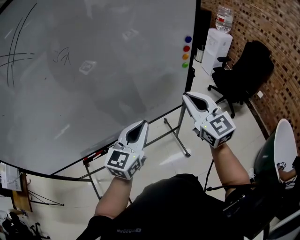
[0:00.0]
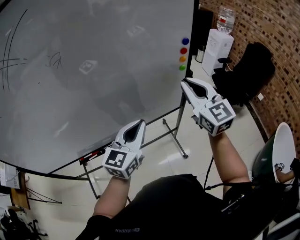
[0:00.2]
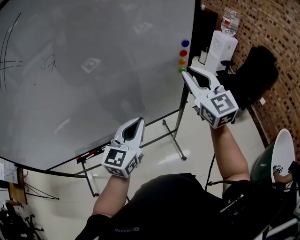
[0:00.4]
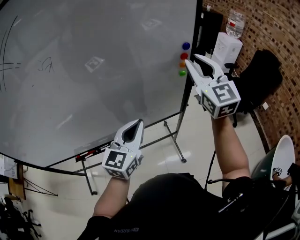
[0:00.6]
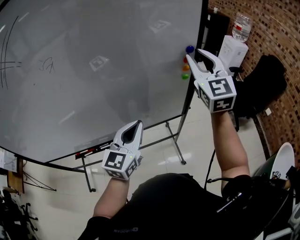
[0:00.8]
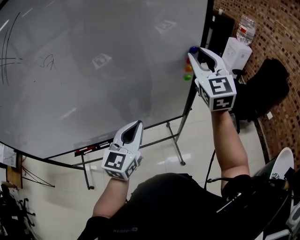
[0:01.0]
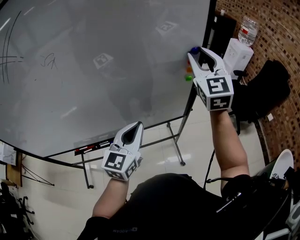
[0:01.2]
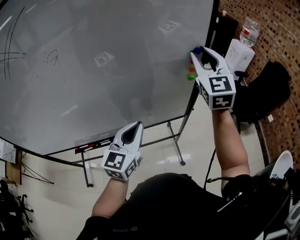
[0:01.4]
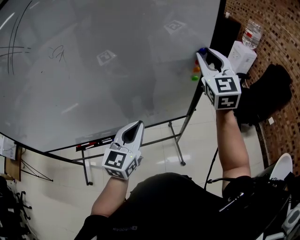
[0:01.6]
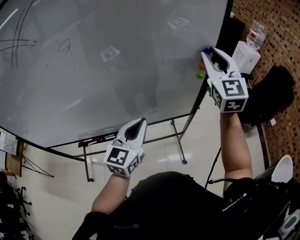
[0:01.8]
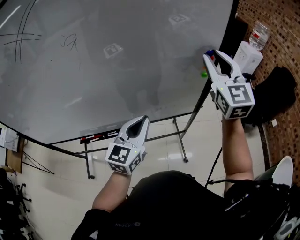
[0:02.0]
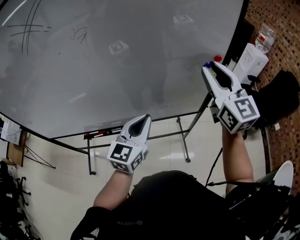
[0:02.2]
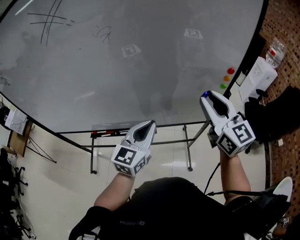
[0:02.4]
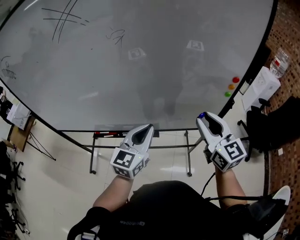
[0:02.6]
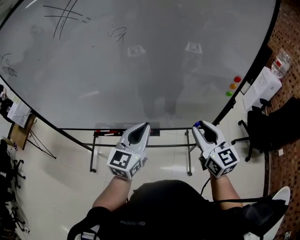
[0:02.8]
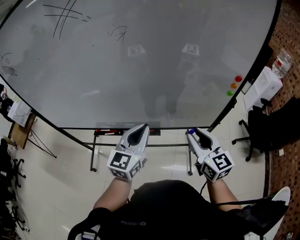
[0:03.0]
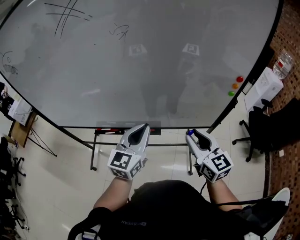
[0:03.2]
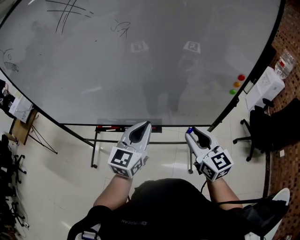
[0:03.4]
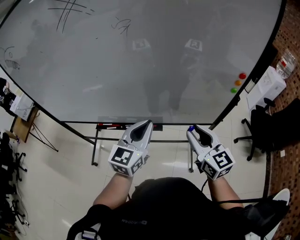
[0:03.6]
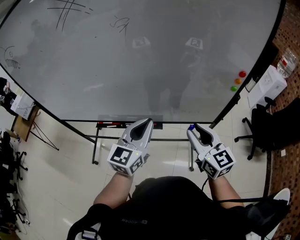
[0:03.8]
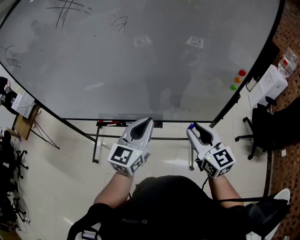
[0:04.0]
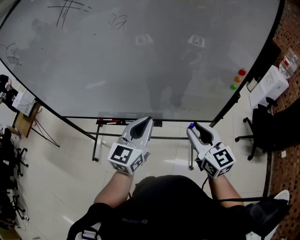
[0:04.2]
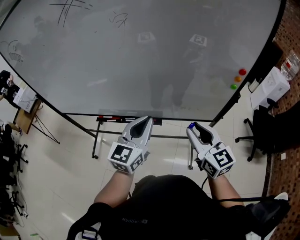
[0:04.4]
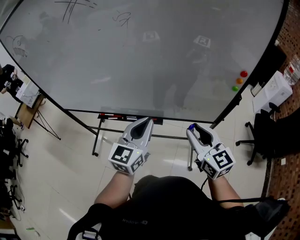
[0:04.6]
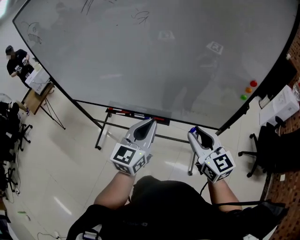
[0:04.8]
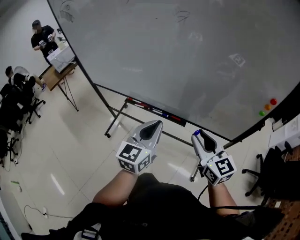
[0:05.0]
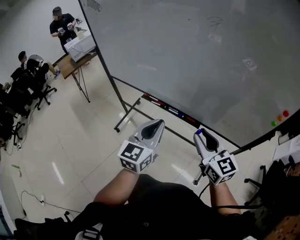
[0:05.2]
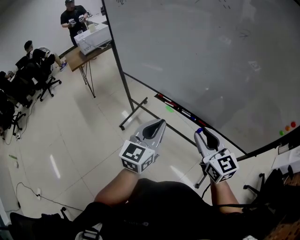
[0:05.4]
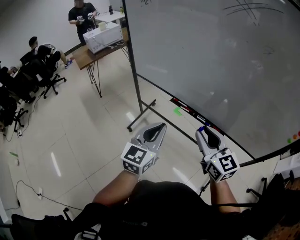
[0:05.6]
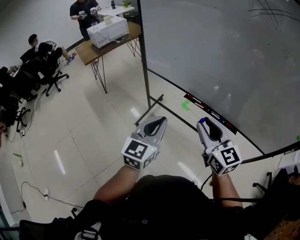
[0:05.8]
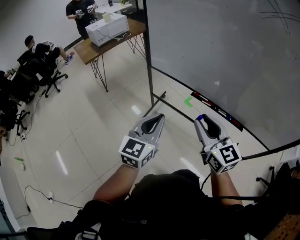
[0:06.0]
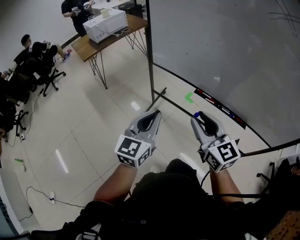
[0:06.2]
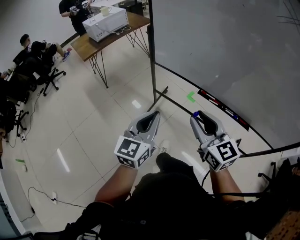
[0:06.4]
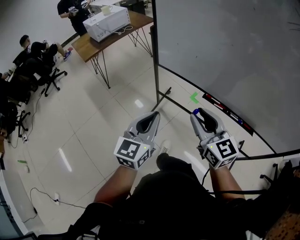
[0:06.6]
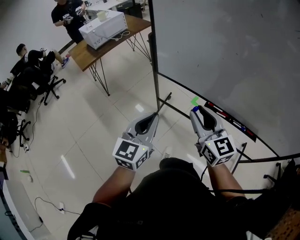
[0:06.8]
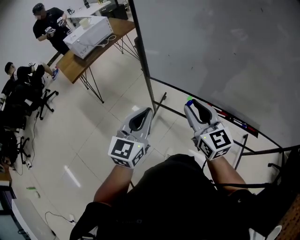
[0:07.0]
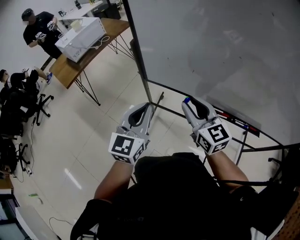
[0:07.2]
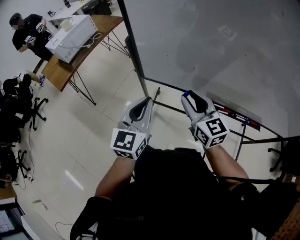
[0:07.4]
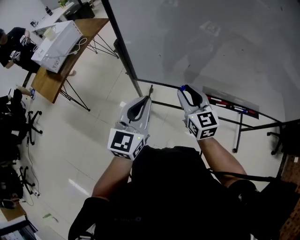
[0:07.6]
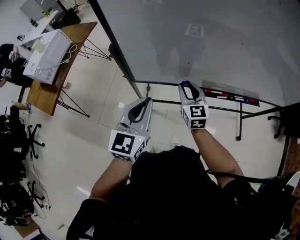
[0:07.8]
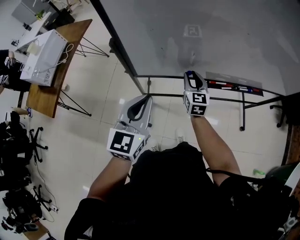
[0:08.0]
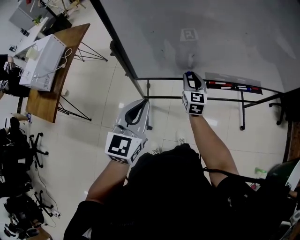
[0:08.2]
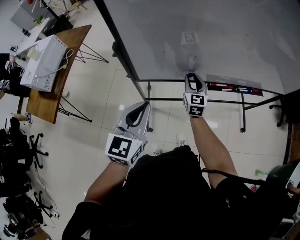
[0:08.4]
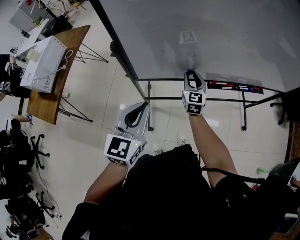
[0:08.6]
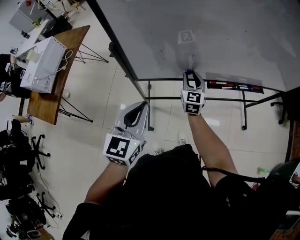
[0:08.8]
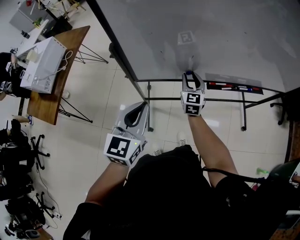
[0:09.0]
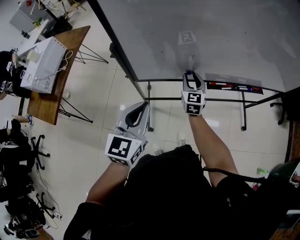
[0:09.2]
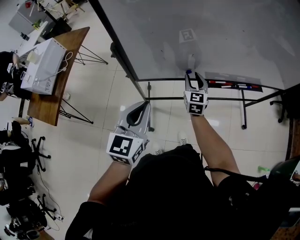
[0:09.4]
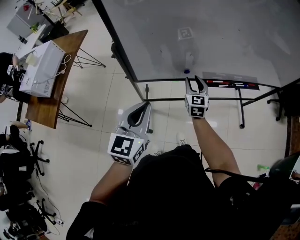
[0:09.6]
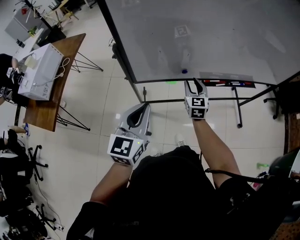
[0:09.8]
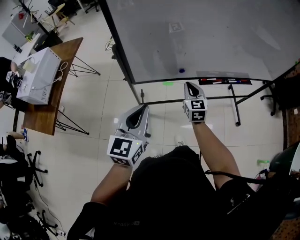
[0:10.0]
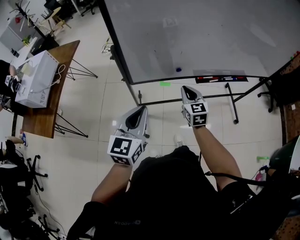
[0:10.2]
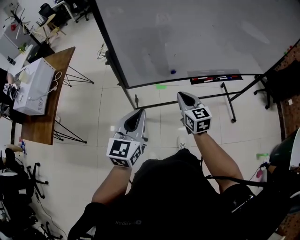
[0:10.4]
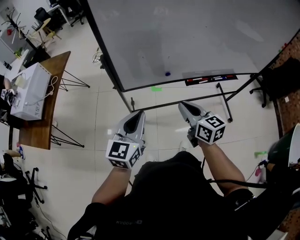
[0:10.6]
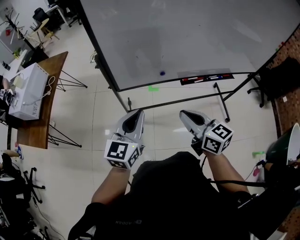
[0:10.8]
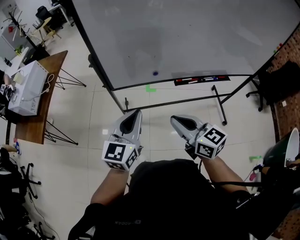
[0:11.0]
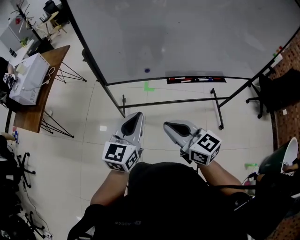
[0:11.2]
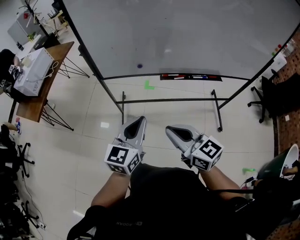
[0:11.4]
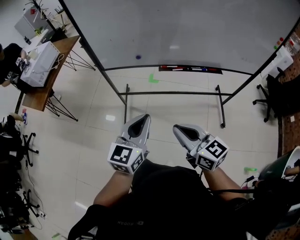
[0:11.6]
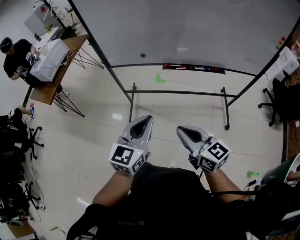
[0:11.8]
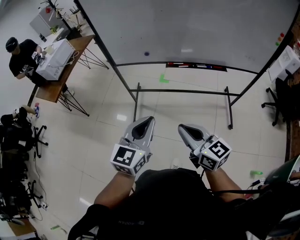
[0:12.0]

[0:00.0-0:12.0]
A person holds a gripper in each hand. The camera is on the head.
0:00.0 to 0:01.6: The right gripper heads forward and upward, covering approximately 20 cm, and opens its fingers.
0:01.6 to 0:03.0: The right gripper is displaced downward, backward and to the left by roughly 30 cm, and swivels about 40 degrees. The left gripper shifts some 10 cm to the left.
0:03.0 to 0:04.4: The grippers move only a little.
0:04.4 to 0:06.0: The pair of grippers is taken approximately 50 cm. The left gripper rotates about 30 degrees. The right gripper changes its angle by some 30 degrees.
0:06.0 to 0:07.6: The right gripper heads forward, covering about 35 cm, and turns by roughly 30 degrees. Meanwhile the left gripper shifts roughly 35 cm forward and to the left.
0:07.6 to 0:09.0: The right gripper moves downward and forward, some 15 cm, and rotates roughly 30 degrees; the left gripper shifts by roughly 5 cm.
0:09.0 to 0:10.4: The right gripper goes about 15 cm backward and upward, and closes its fingers; the left gripper goes approximately 5 cm backward.
0:10.4 to 0:12.0: Both grippers move backward and to the right, approximately 40 cm. The right gripper rotates some 40 degrees.

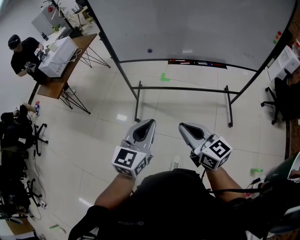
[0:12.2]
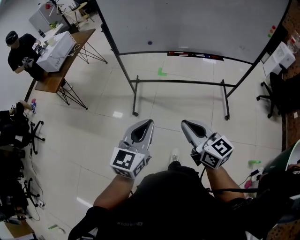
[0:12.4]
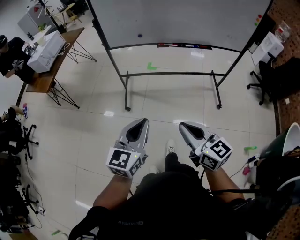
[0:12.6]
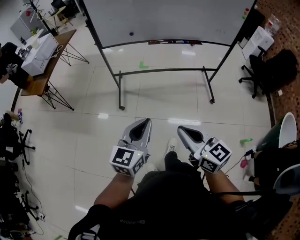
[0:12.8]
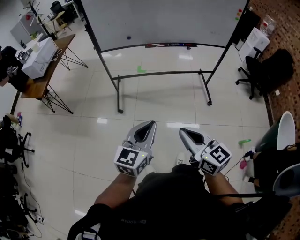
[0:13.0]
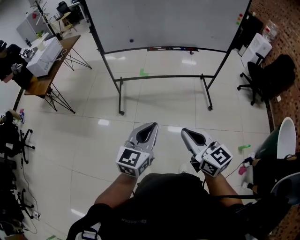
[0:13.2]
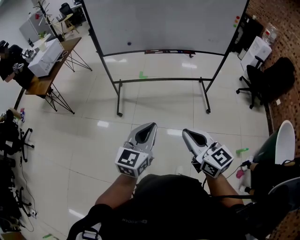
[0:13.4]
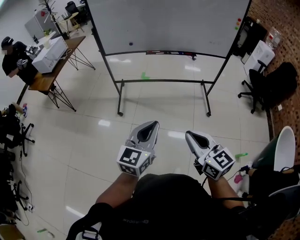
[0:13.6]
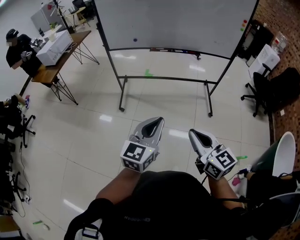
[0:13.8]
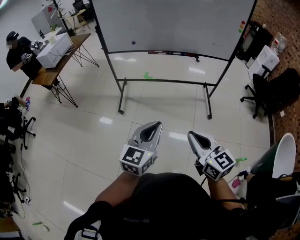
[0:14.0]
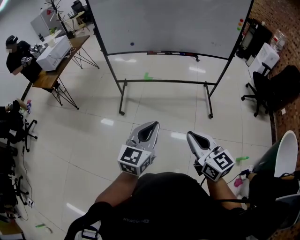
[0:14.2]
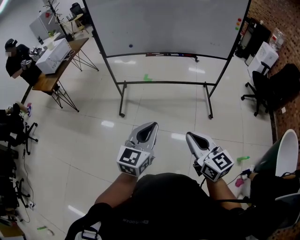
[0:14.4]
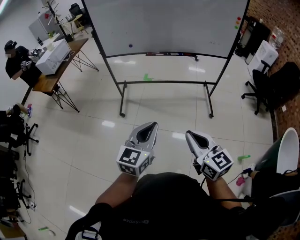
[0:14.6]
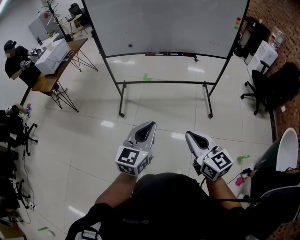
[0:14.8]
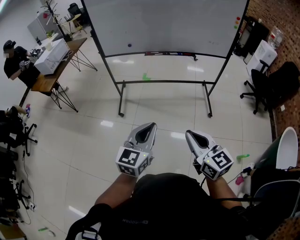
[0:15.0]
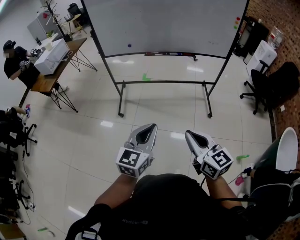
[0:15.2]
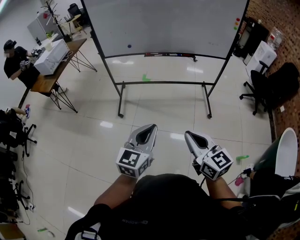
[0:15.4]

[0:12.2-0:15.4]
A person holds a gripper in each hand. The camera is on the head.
0:12.2 to 0:13.8: The two grippers go approximately 30 cm backward and to the right.
0:13.8 to 0:15.4: The grippers stay close to where they were, moving slightly.

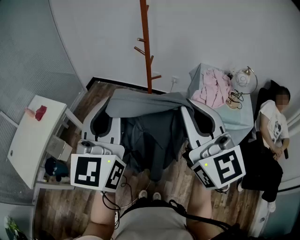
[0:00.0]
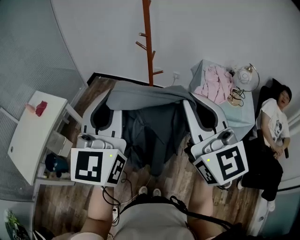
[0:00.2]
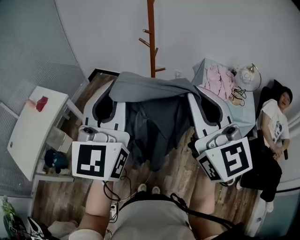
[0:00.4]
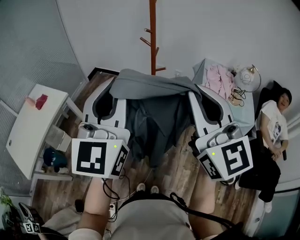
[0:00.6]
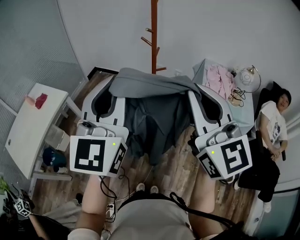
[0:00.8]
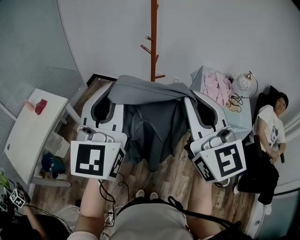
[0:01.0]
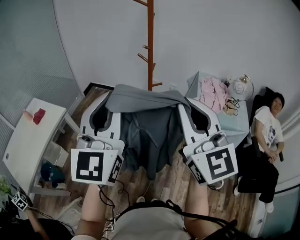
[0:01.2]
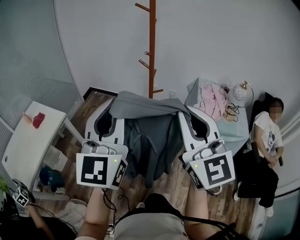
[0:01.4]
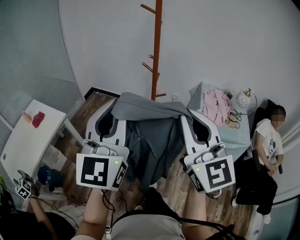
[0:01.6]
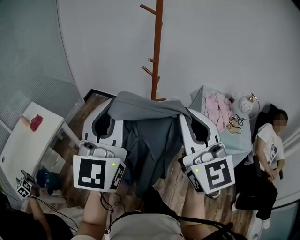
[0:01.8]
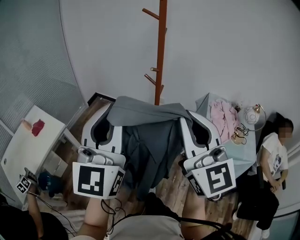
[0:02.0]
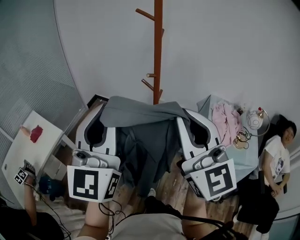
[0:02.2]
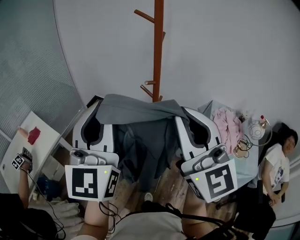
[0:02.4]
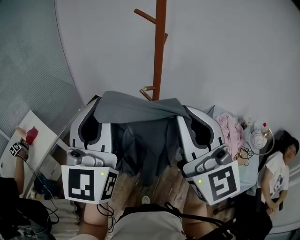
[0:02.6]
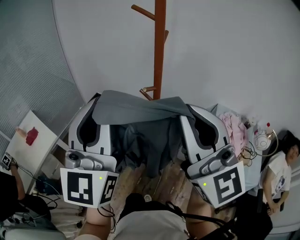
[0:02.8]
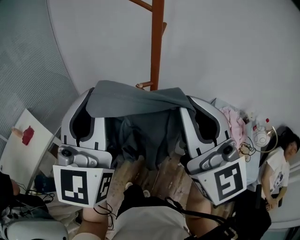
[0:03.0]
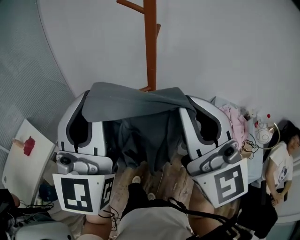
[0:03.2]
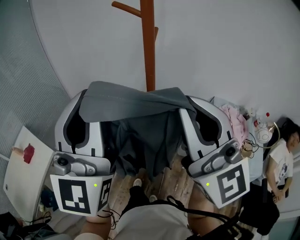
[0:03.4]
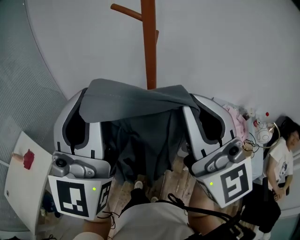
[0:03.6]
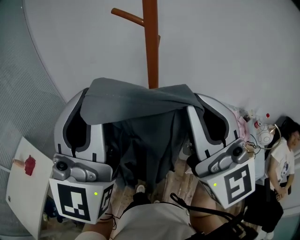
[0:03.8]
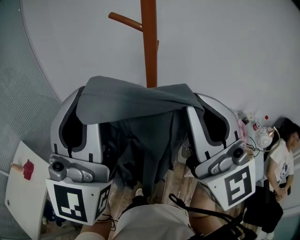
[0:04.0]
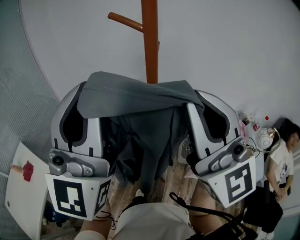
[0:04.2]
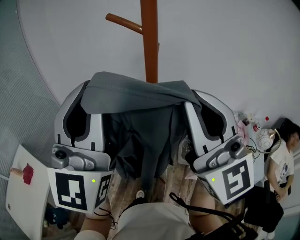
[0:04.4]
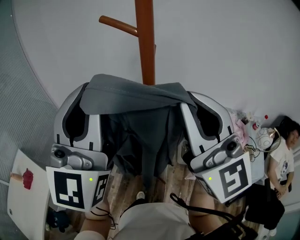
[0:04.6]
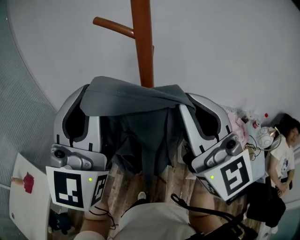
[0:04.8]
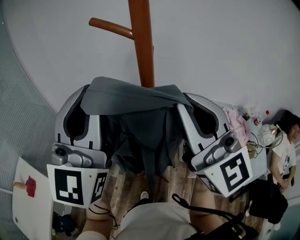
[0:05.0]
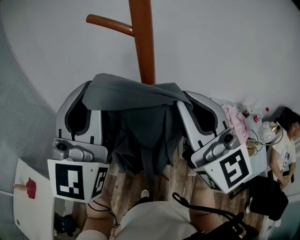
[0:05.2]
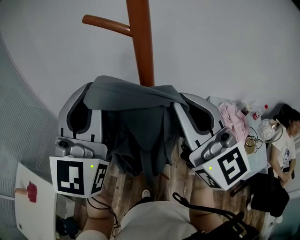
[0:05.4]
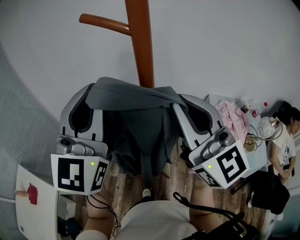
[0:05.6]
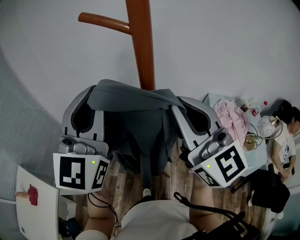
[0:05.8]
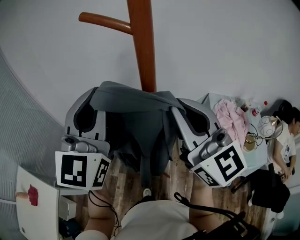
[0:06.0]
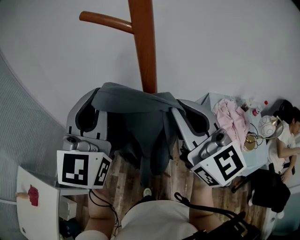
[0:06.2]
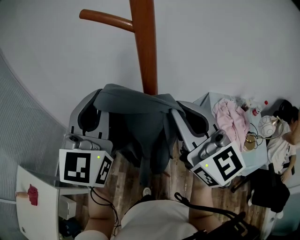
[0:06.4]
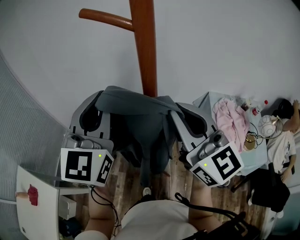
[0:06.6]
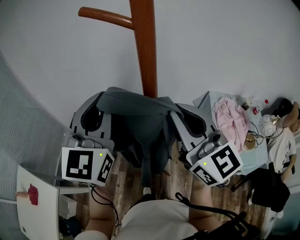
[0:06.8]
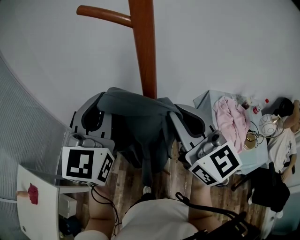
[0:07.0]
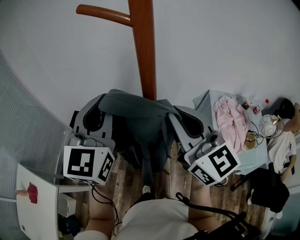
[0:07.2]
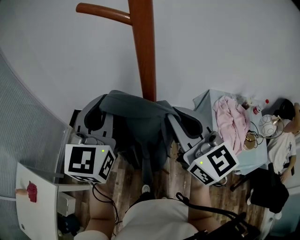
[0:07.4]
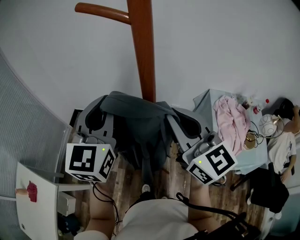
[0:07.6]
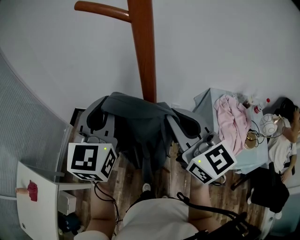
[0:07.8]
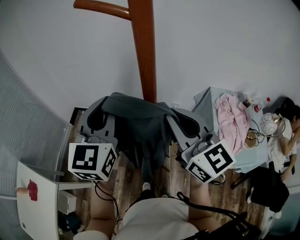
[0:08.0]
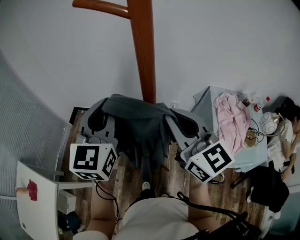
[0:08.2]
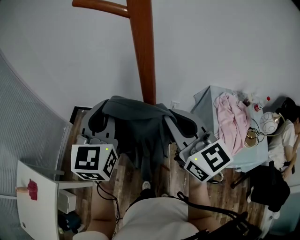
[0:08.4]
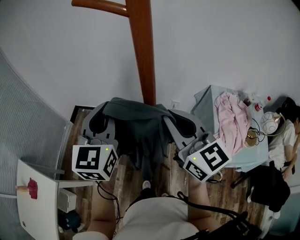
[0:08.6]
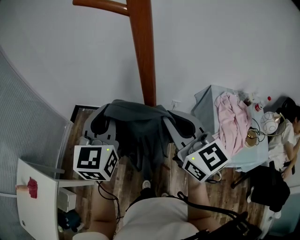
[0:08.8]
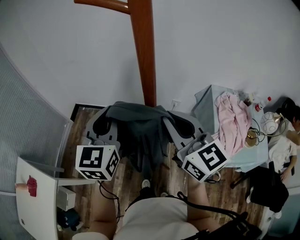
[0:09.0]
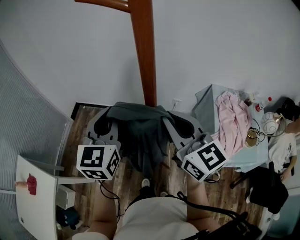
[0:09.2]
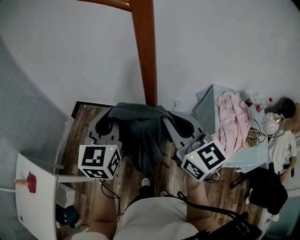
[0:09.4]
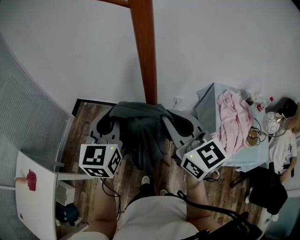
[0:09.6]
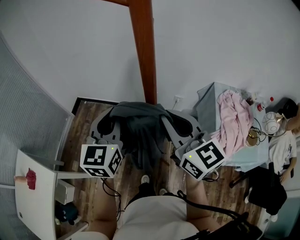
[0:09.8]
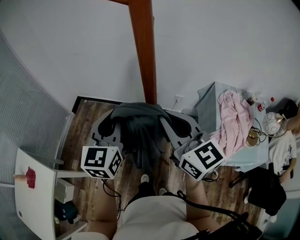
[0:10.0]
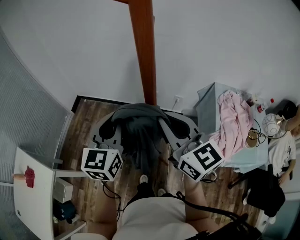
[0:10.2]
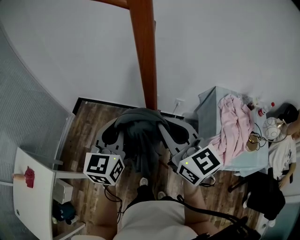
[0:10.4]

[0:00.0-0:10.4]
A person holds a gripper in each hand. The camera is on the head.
0:00.0 to 0:01.4: There are only small adjustments of the grippers.
0:01.4 to 0:03.0: Both grippers travel together forward, some 10 cm. The left gripper rotates approximately 20 degrees; the right gripper rotates about 30 degrees.
0:03.0 to 0:04.4: The grippers move only a little.
0:04.4 to 0:06.0: The right gripper goes approximately 5 cm downward; the left gripper goes roughly 10 cm forward and downward.
0:06.0 to 0:07.4: Both grippers travel together downward, approximately 5 cm.
0:07.4 to 0:09.0: The right gripper moves downward, approximately 5 cm. The left gripper moves downward, roughly 10 cm.
0:09.0 to 0:10.4: The left gripper moves downward, roughly 5 cm.
